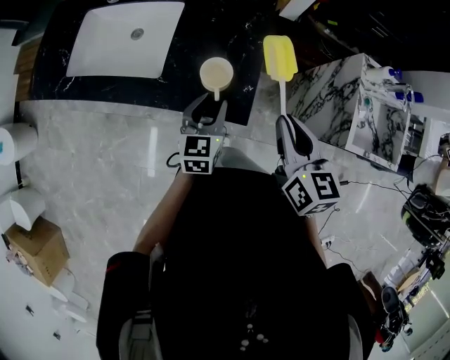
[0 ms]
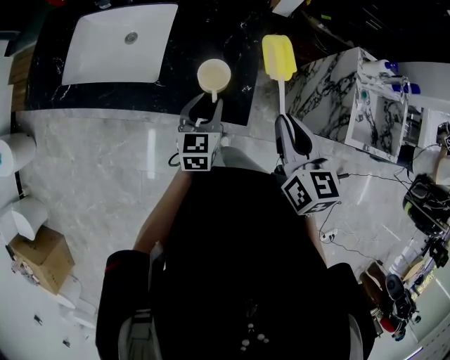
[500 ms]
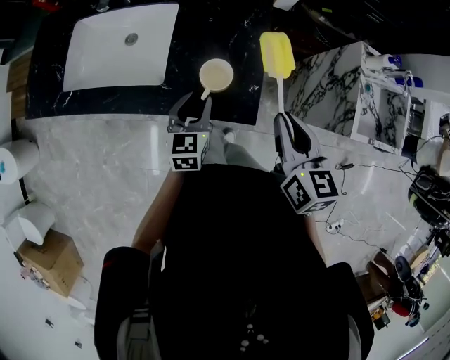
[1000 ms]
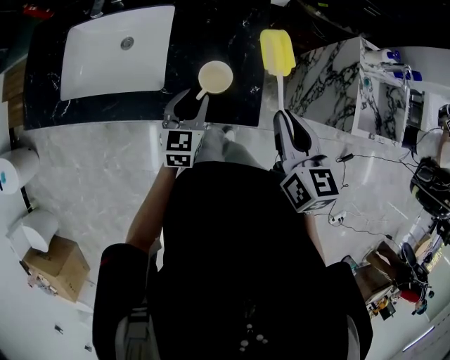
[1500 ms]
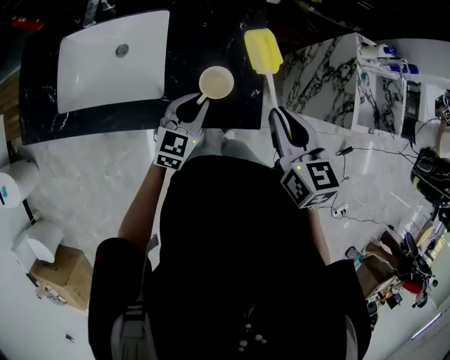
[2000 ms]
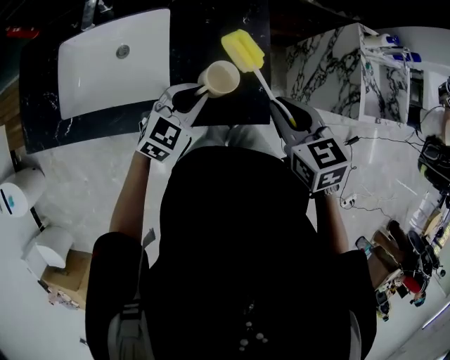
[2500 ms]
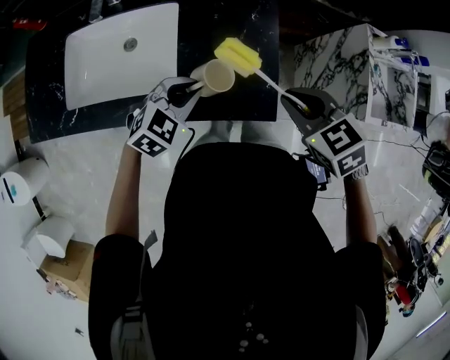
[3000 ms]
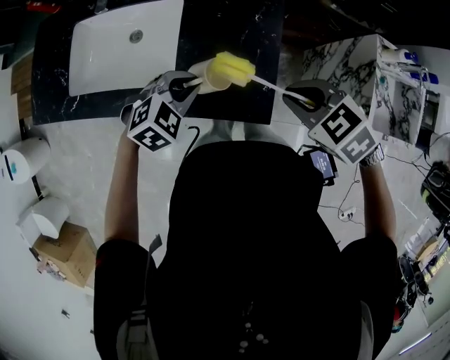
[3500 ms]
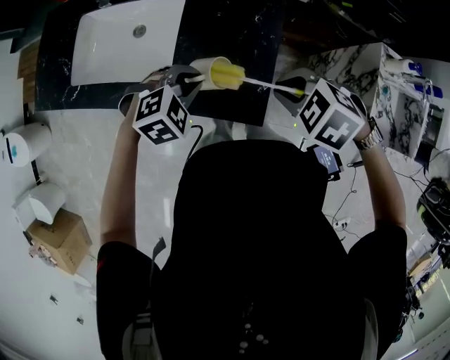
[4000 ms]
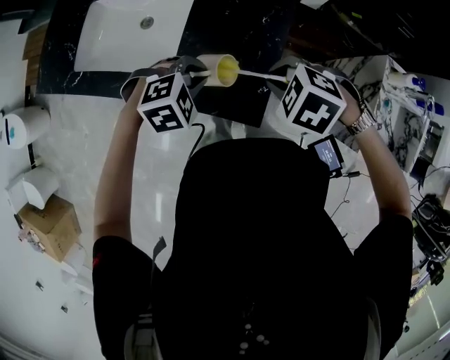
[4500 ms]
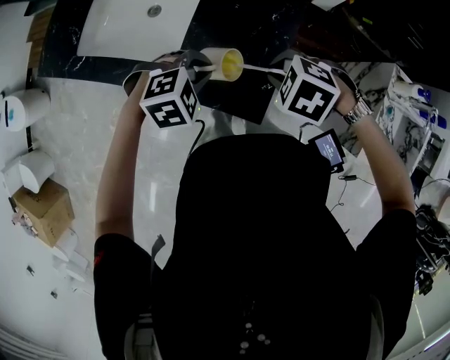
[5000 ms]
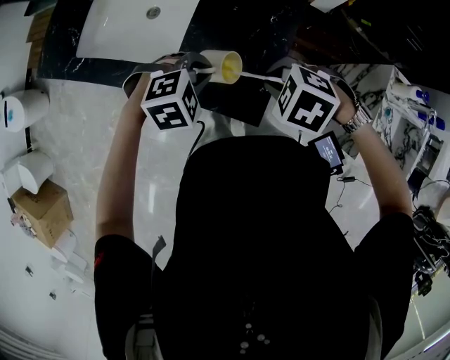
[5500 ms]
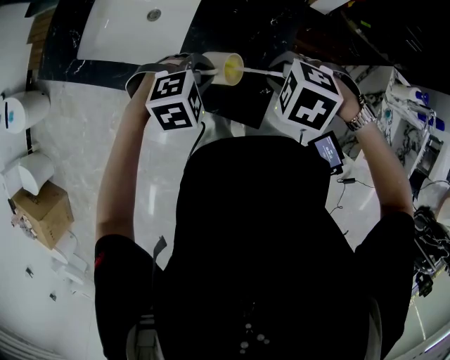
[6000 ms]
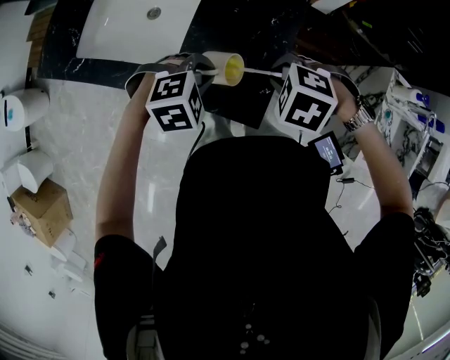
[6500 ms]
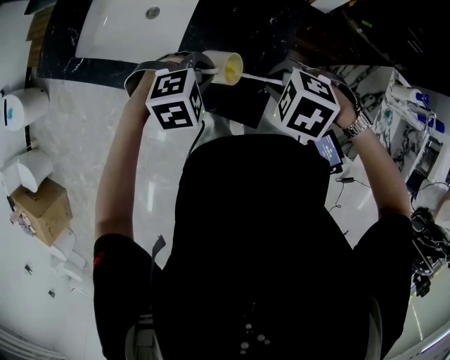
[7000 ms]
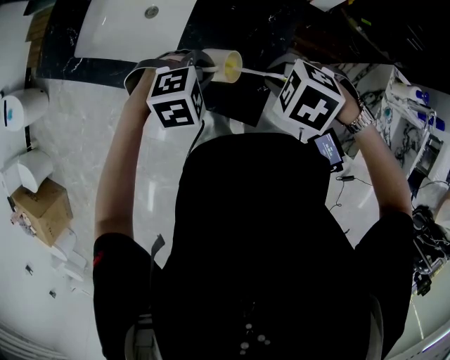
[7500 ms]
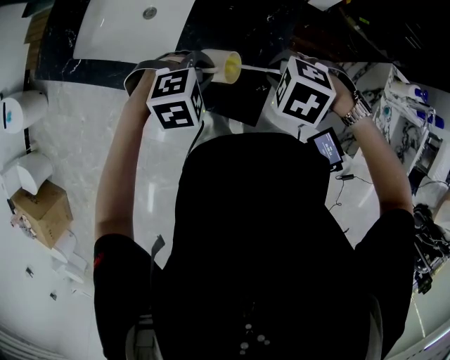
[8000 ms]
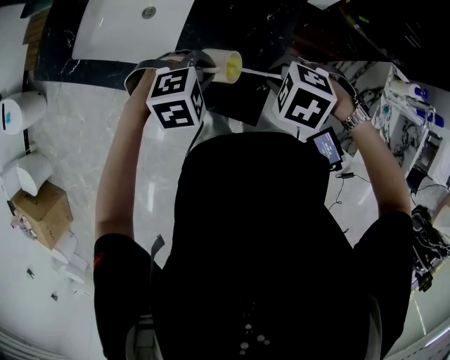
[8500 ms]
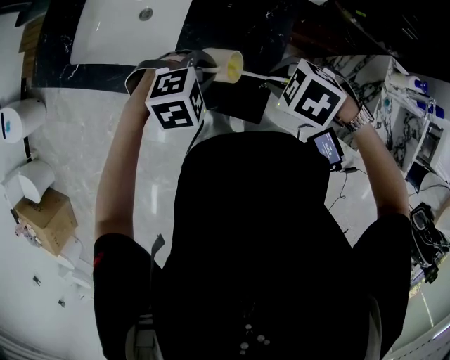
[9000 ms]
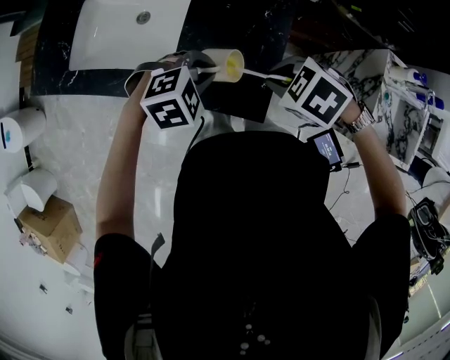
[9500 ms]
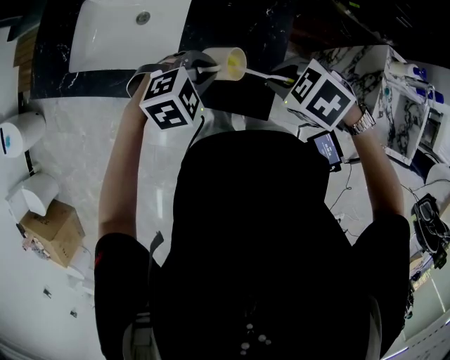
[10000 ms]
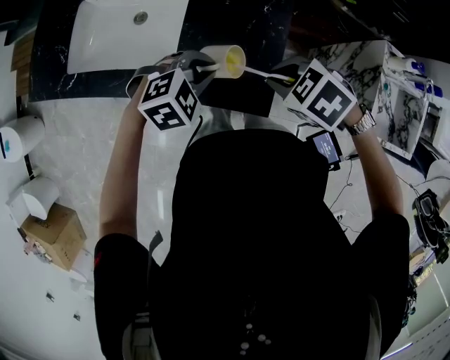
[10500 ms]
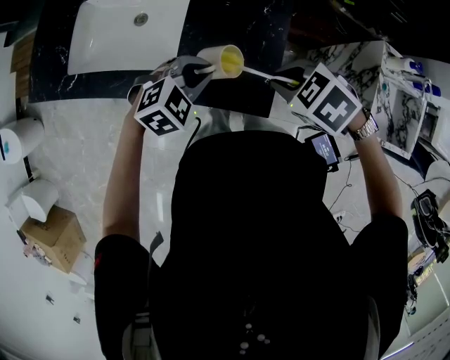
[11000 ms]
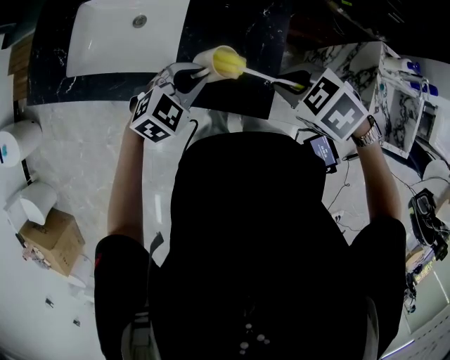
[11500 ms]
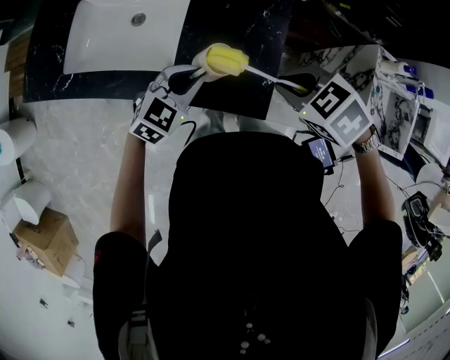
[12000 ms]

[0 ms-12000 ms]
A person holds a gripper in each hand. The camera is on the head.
0 ms to 2000 ms: Both grippers move to the left, roughly 5 cm. The left gripper changes its angle by approximately 30 degrees.
2000 ms to 4000 ms: The left gripper tilts its fingers some 30 degrees downward. The right gripper changes place by some 5 cm, and points its fingers about 30 degrees further downward.
4000 ms to 6000 ms: The grippers move only a little.
6000 ms to 8000 ms: The grippers make only small movements.
8000 ms to 10000 ms: The right gripper rotates roughly 20 degrees.
10000 ms to 12000 ms: The left gripper turns by some 30 degrees.

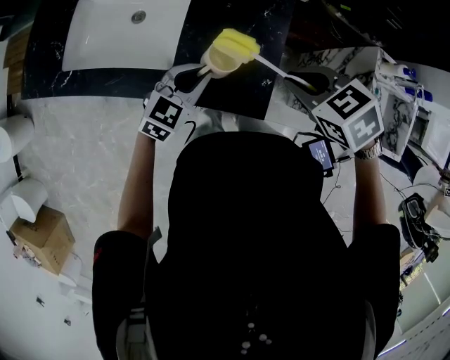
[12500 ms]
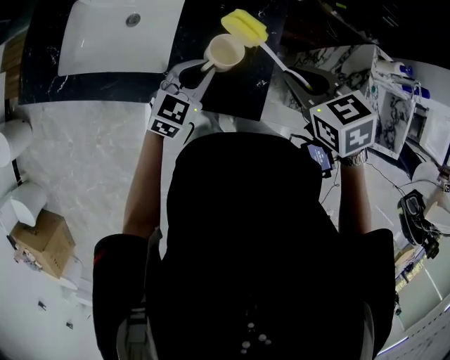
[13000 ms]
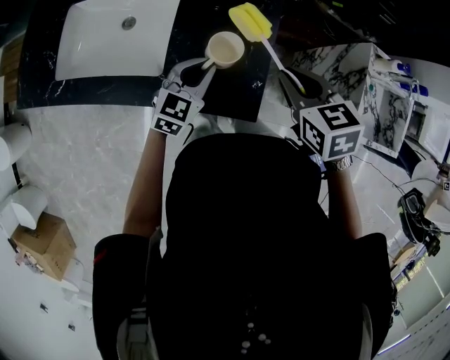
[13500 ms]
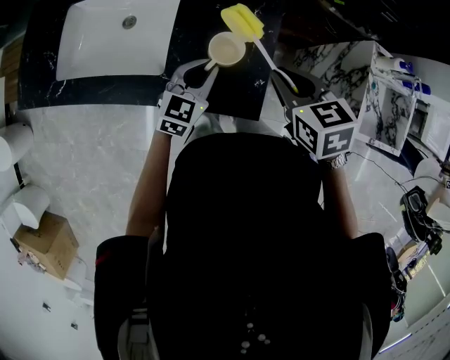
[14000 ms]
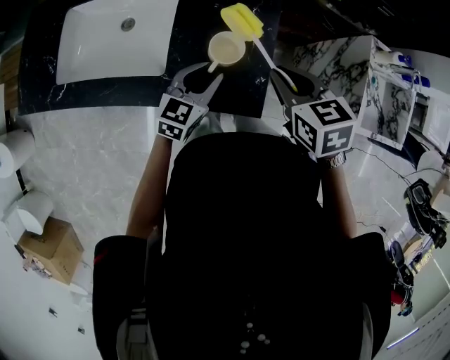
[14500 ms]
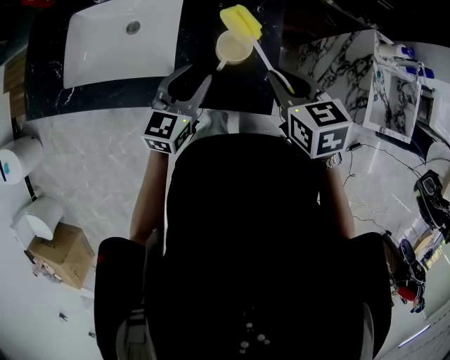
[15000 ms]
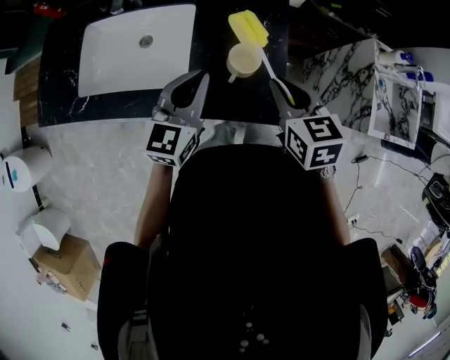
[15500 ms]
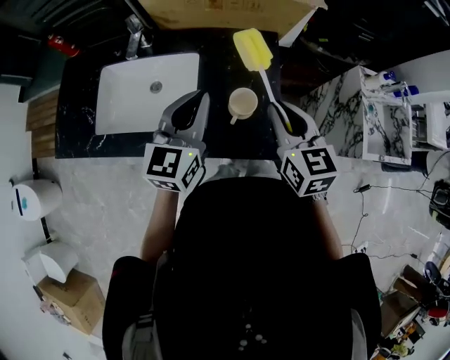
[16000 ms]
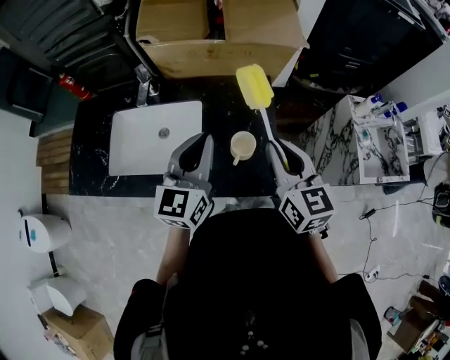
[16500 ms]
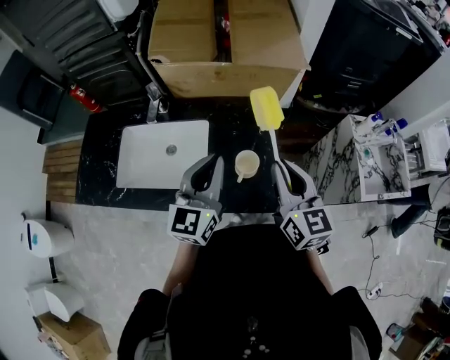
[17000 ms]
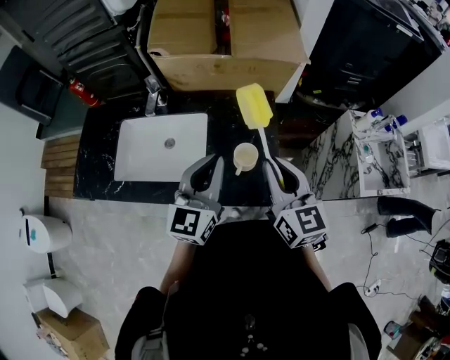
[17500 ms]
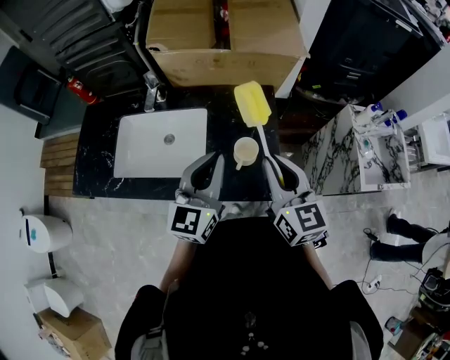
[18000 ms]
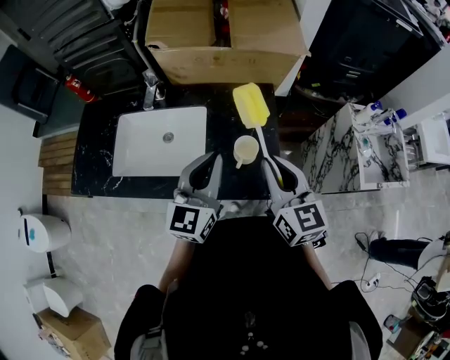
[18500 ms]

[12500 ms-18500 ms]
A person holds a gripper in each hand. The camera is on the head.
12500 ms to 14500 ms: The right gripper turns by some 30 degrees.
14500 ms to 16500 ms: The right gripper travels upward by about 15 cm, and tips its fingers upward by some 30 degrees. The left gripper heads upward, covering about 25 cm, rotates approximately 30 degrees, and closes its fingers.
16500 ms to 18500 ms: The grippers move only a little.

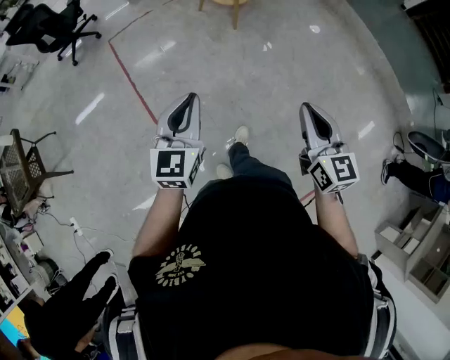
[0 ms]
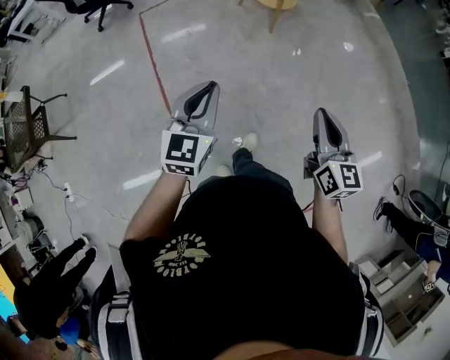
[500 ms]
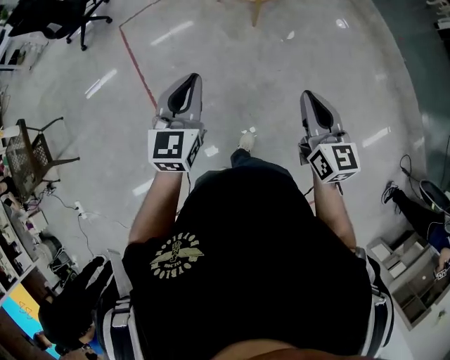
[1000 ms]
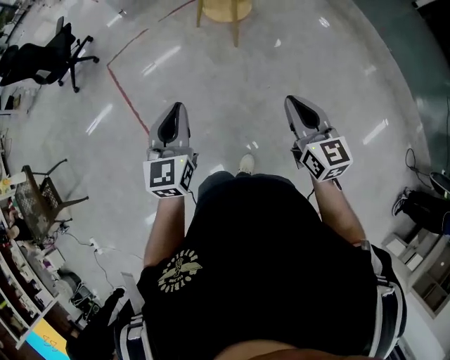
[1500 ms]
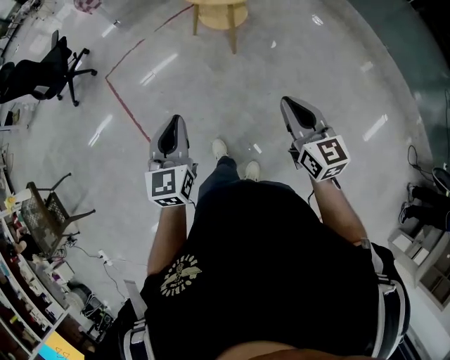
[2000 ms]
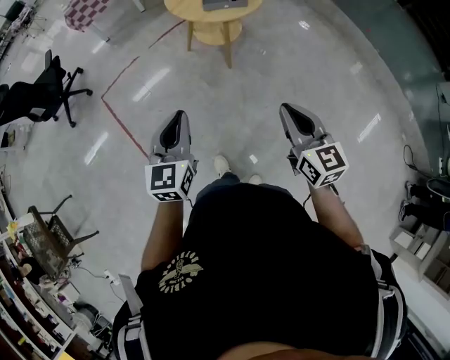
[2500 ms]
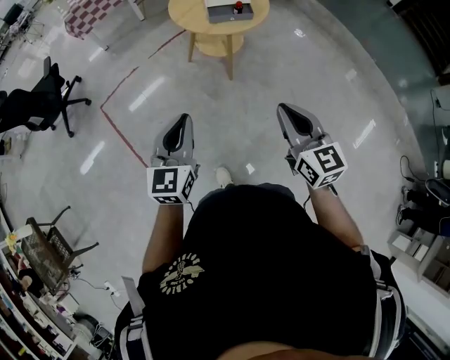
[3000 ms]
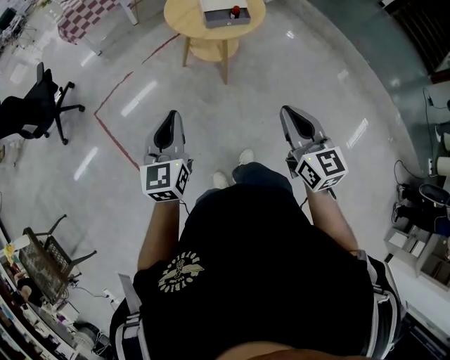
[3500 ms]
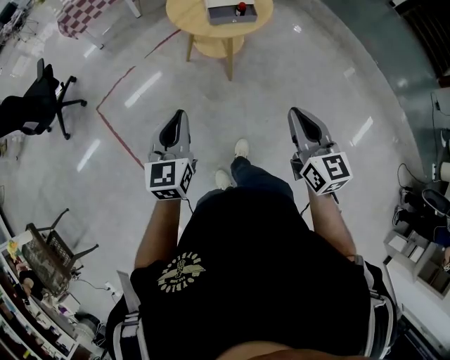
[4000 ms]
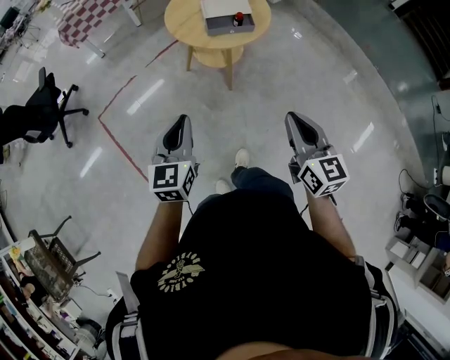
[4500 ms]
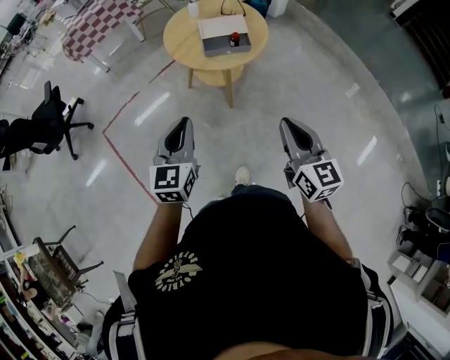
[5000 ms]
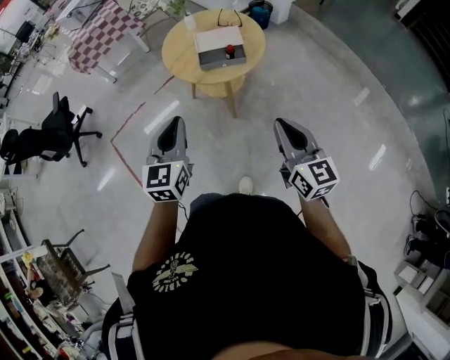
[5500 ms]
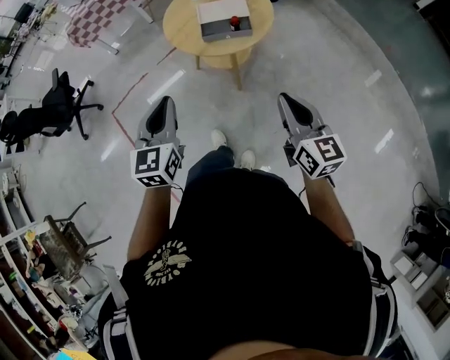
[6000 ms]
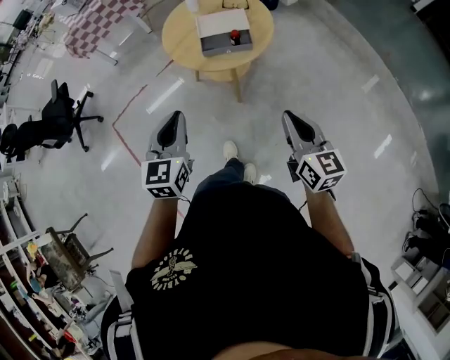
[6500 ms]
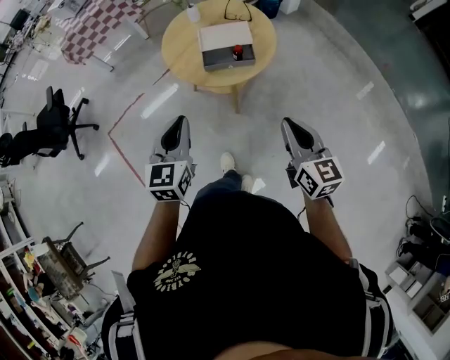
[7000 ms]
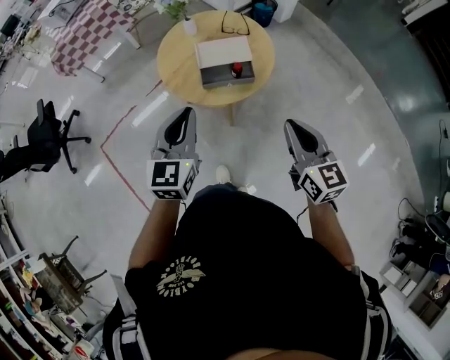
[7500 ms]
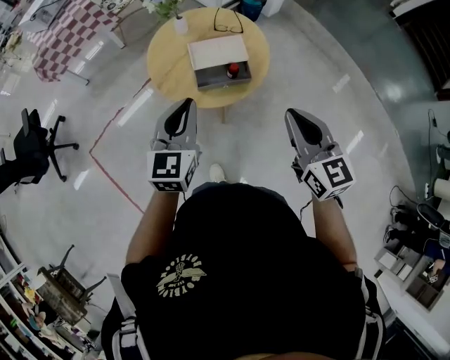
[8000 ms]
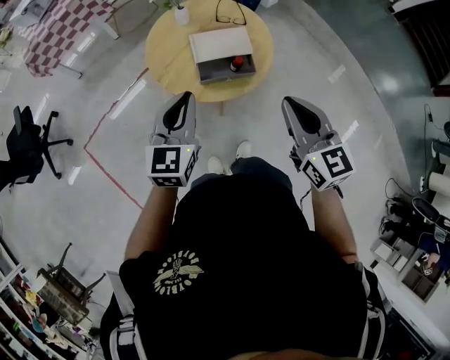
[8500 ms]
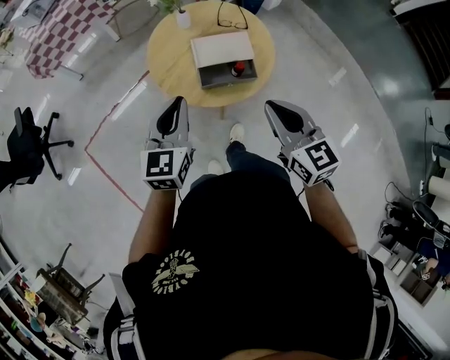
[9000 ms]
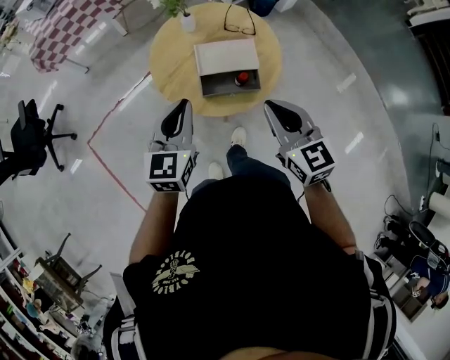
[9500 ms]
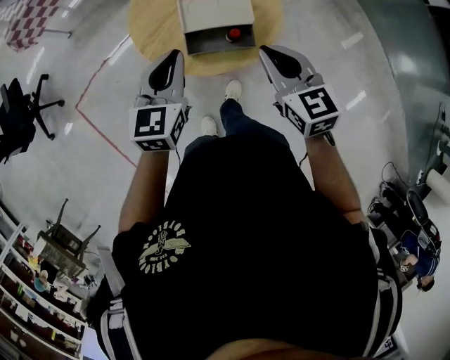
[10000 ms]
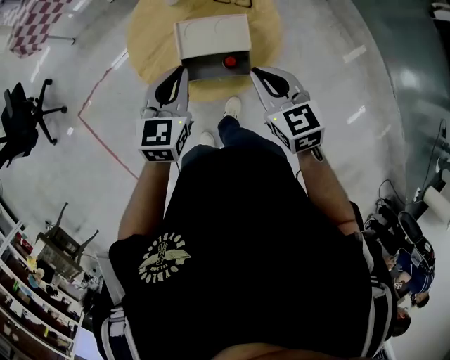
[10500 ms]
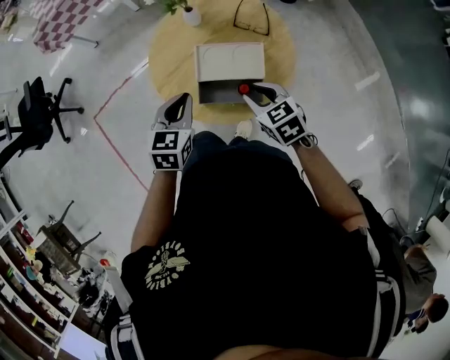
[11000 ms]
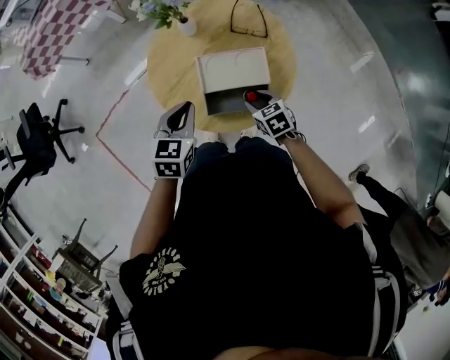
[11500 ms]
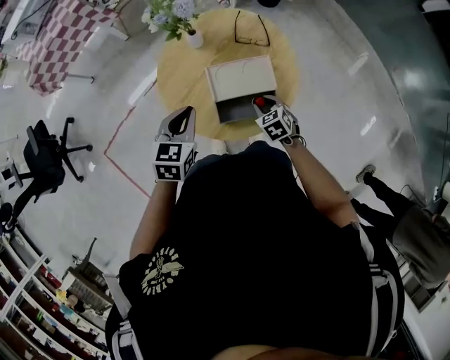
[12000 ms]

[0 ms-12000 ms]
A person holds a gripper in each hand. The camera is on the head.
0 ms to 2000 ms: The grippers both shift forward by some 30 cm.
2000 ms to 4000 ms: Both grippers move forward, approximately 20 cm.
4000 ms to 6000 ms: The two grippers go roughly 20 cm forward and to the right.
6000 ms to 8000 ms: The two grippers go some 25 cm forward.
8000 ms to 10000 ms: The grippers both shift forward and downward by roughly 20 cm.
10000 ms to 12000 ms: The left gripper shifts some 15 cm forward, downward and to the left; the right gripper shifts some 25 cm downward, tips its fingers downward by approximately 30 degrees, and opens.
